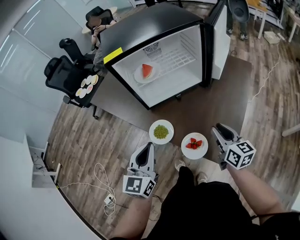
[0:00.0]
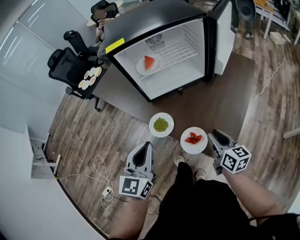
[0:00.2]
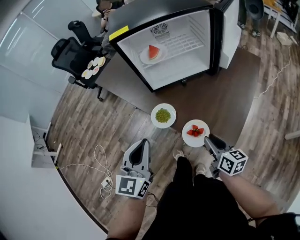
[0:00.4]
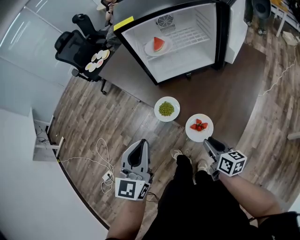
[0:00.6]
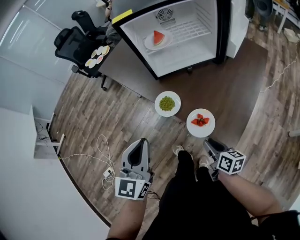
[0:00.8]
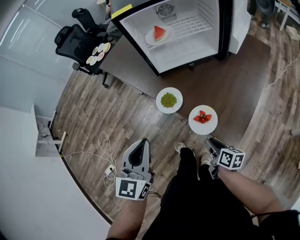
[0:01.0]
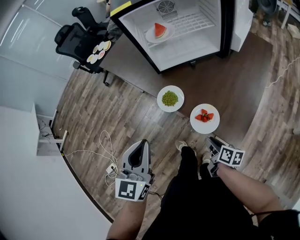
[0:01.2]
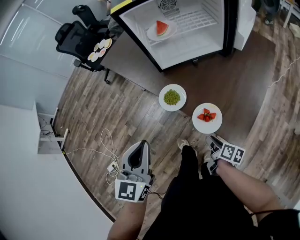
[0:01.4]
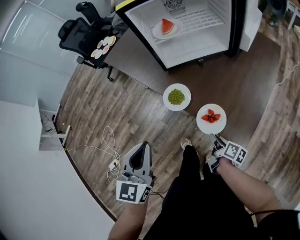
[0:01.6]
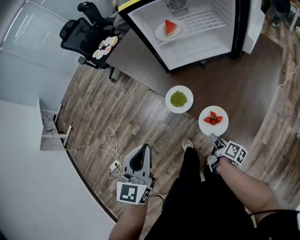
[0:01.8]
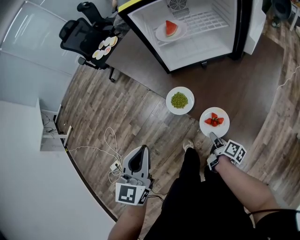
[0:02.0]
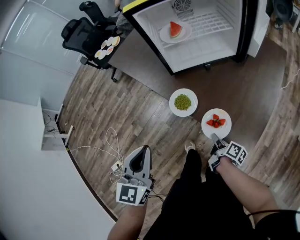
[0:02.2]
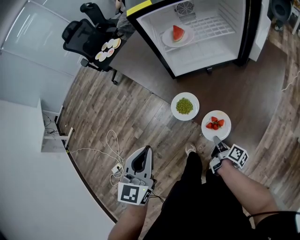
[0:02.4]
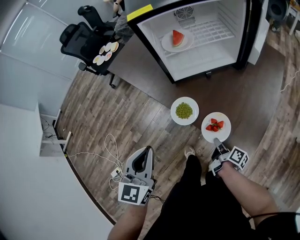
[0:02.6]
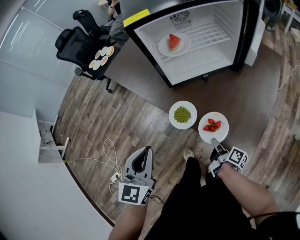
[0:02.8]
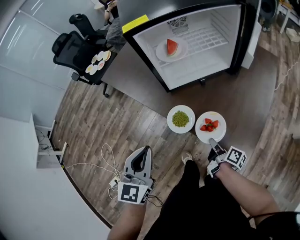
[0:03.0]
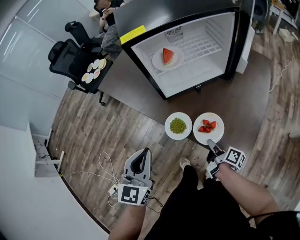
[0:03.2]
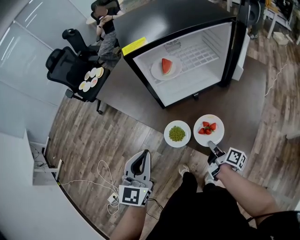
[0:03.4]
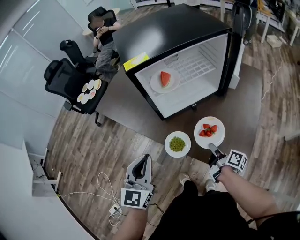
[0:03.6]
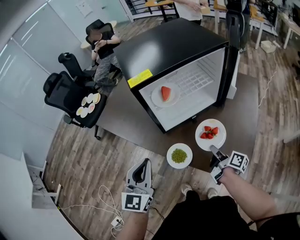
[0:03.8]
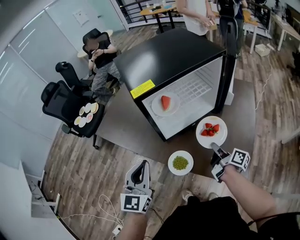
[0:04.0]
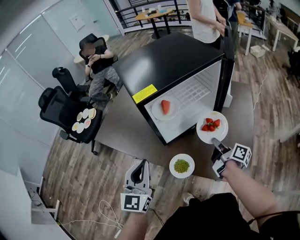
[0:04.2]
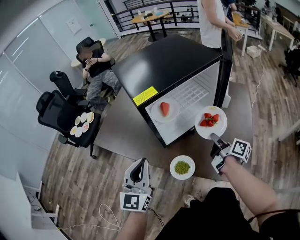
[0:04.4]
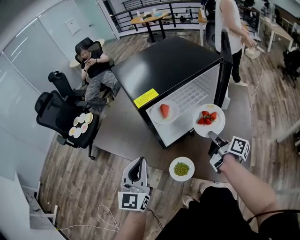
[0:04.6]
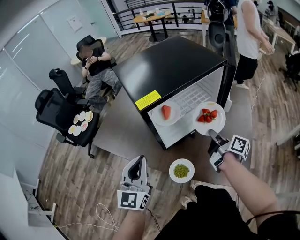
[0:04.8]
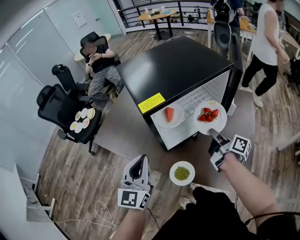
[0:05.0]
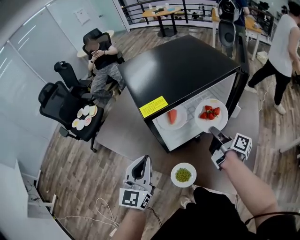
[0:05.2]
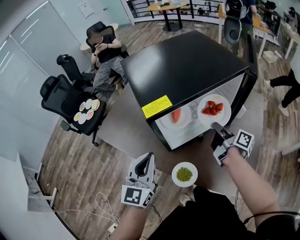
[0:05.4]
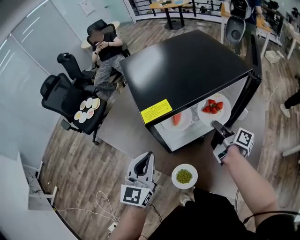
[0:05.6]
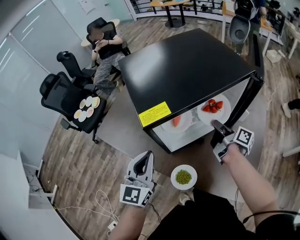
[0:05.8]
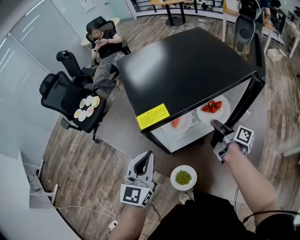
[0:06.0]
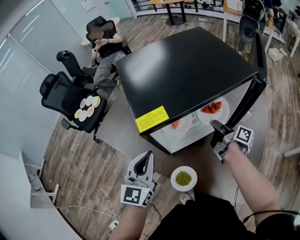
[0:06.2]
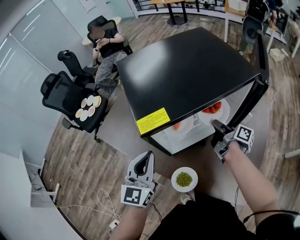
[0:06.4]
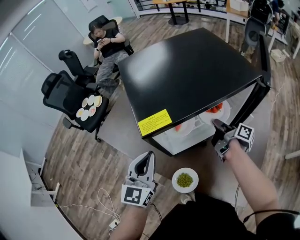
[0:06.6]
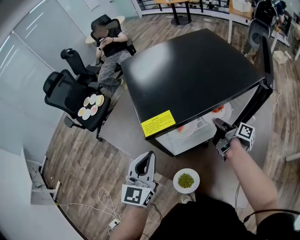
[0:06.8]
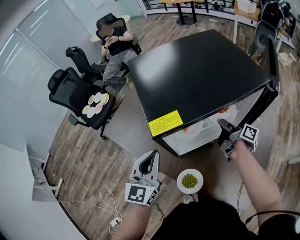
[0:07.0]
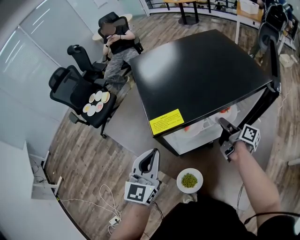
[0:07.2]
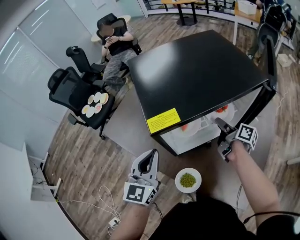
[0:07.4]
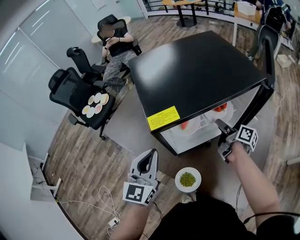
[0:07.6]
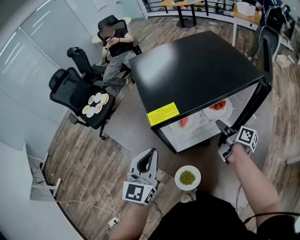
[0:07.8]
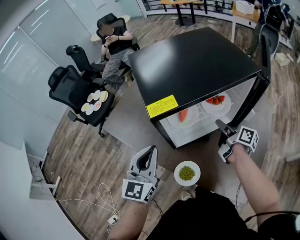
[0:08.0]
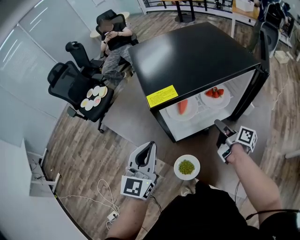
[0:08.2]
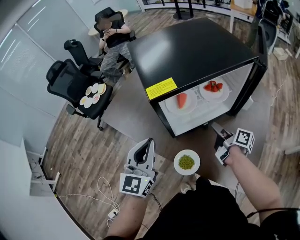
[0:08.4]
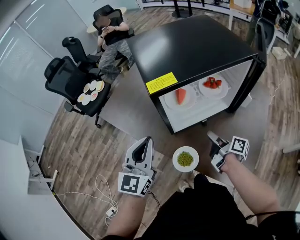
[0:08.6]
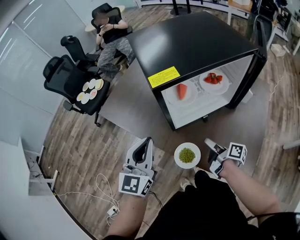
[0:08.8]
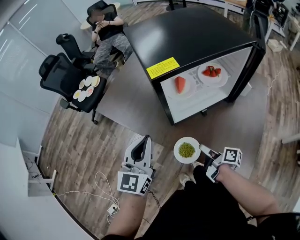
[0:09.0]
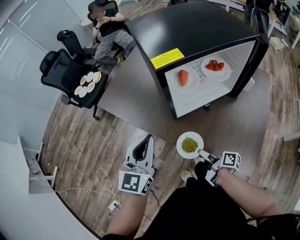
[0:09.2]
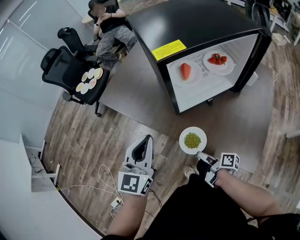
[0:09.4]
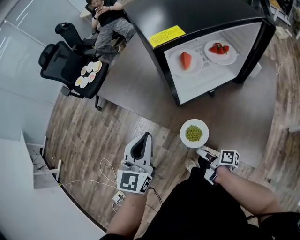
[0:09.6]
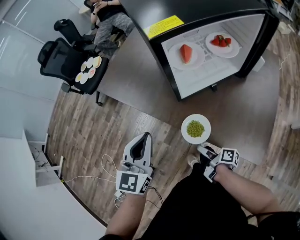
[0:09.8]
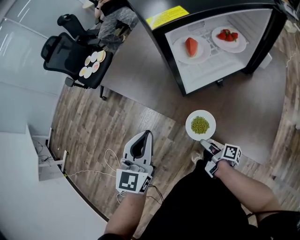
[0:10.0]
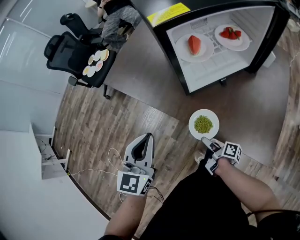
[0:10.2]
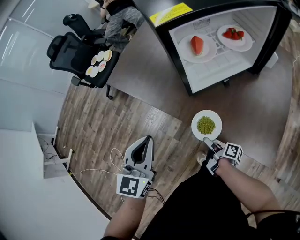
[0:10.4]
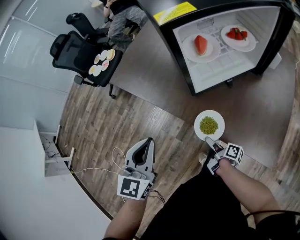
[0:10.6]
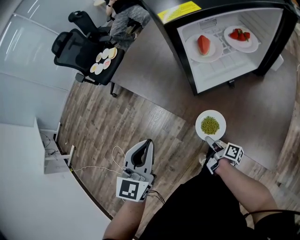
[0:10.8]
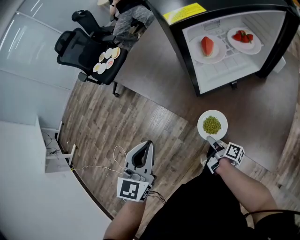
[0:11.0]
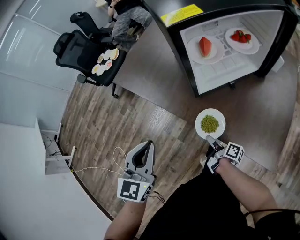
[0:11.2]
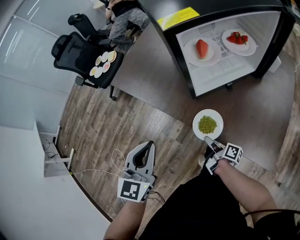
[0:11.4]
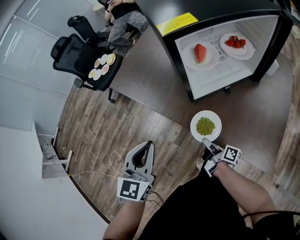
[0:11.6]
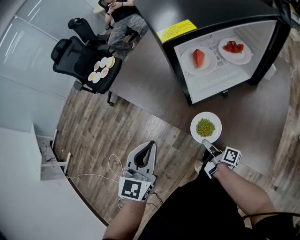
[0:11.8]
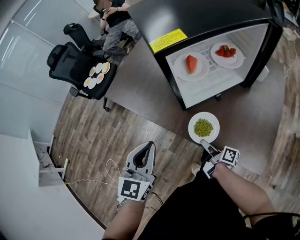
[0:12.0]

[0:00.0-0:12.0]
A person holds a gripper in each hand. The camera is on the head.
0:00.0 to 0:01.6: The right gripper travels downward, to the left and backward by about 25 cm, and rotates around the line of its fingers by about 50 degrees, clockwise from behind. The left gripper heads backward and to the left, covering about 15 cm.
0:01.6 to 0:03.0: The grippers both shift forward by some 10 cm.
0:03.0 to 0:04.4: The right gripper moves upward and forward, about 25 cm, and changes its angle by roughly 20 degrees. The left gripper shifts approximately 15 cm forward and upward, and turns by roughly 20 degrees.
0:04.4 to 0:06.0: The right gripper travels forward by about 15 cm; the left gripper moves forward, some 10 cm.
0:06.0 to 0:07.6: The right gripper opens.
0:07.6 to 0:09.0: The left gripper is displaced backward by roughly 10 cm. The right gripper travels backward, to the left and downward by some 30 cm.
0:09.0 to 0:10.4: The left gripper is displaced backward, downward and to the left by about 10 cm, while the right gripper moves downward, to the left and backward, roughly 15 cm.
0:10.4 to 0:12.0: The right gripper is displaced upward and forward by about 10 cm, and closes its fingers.

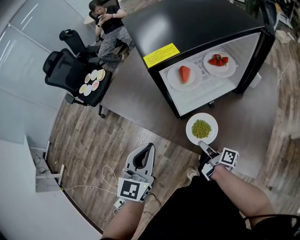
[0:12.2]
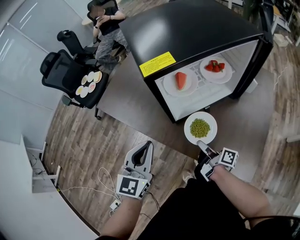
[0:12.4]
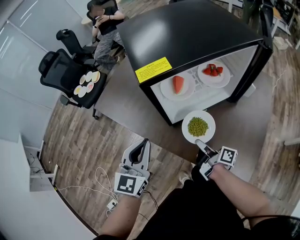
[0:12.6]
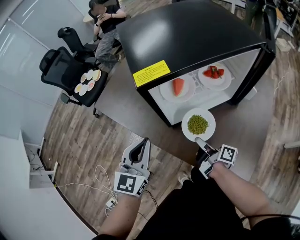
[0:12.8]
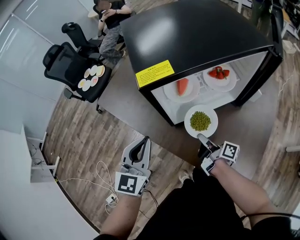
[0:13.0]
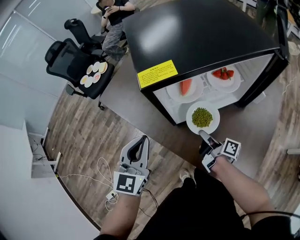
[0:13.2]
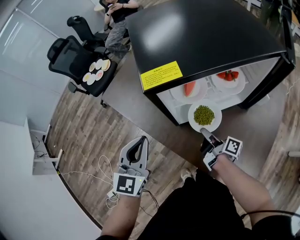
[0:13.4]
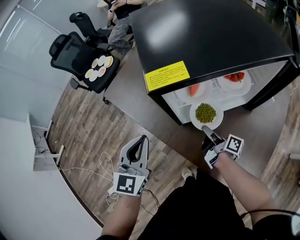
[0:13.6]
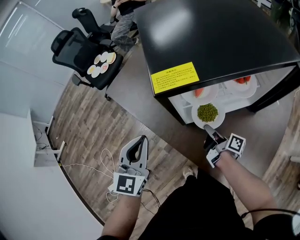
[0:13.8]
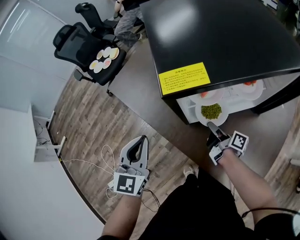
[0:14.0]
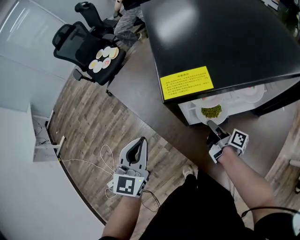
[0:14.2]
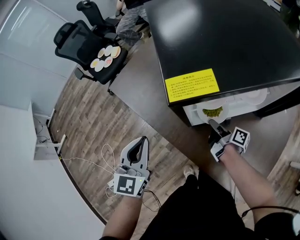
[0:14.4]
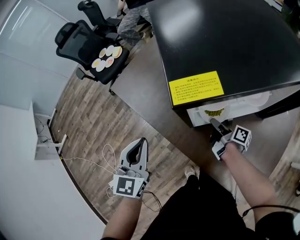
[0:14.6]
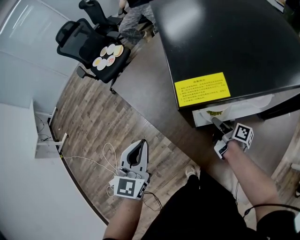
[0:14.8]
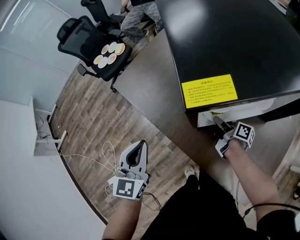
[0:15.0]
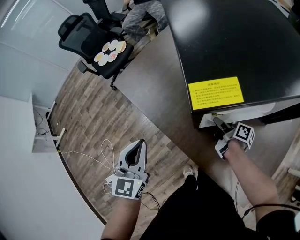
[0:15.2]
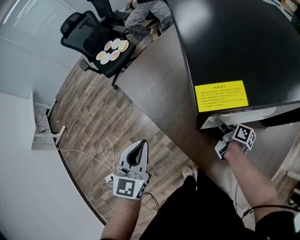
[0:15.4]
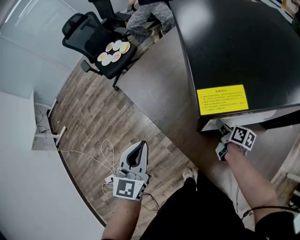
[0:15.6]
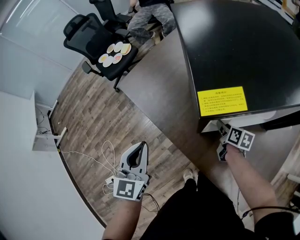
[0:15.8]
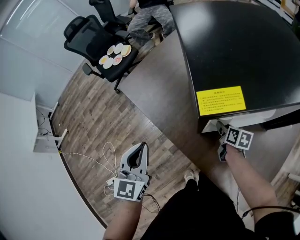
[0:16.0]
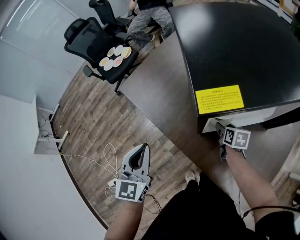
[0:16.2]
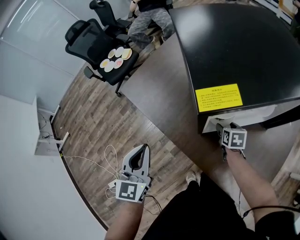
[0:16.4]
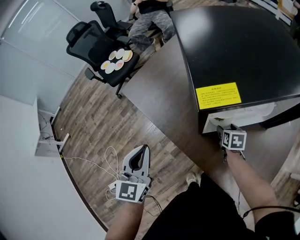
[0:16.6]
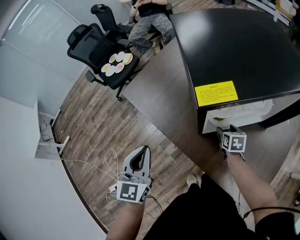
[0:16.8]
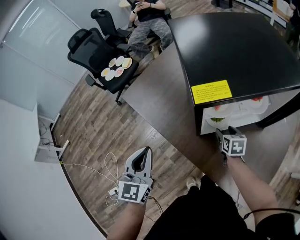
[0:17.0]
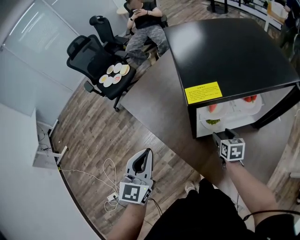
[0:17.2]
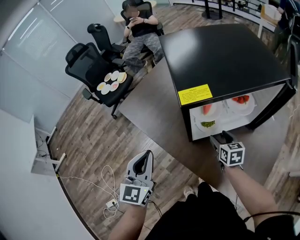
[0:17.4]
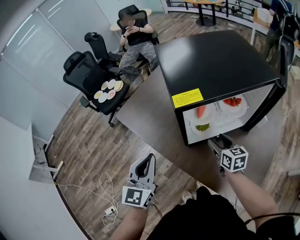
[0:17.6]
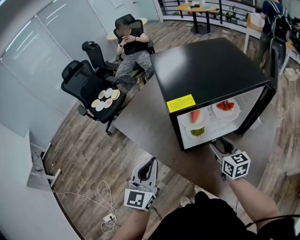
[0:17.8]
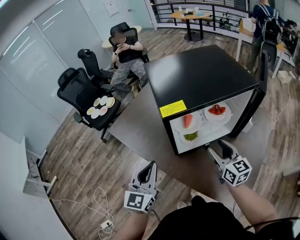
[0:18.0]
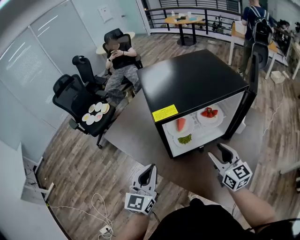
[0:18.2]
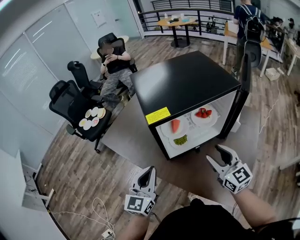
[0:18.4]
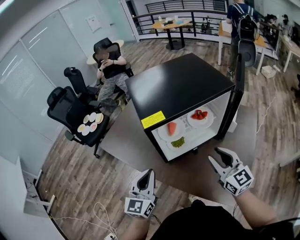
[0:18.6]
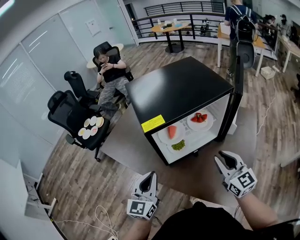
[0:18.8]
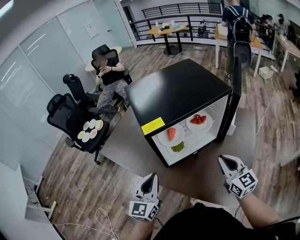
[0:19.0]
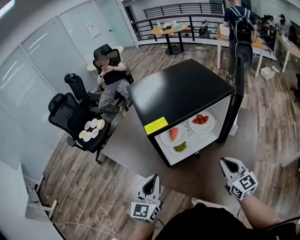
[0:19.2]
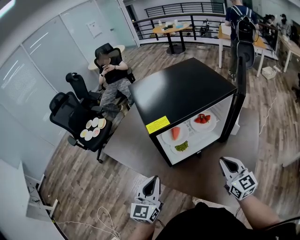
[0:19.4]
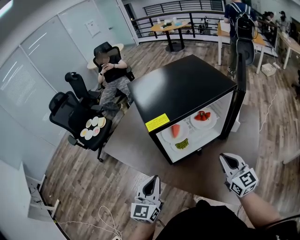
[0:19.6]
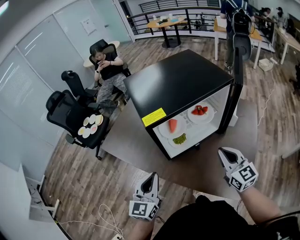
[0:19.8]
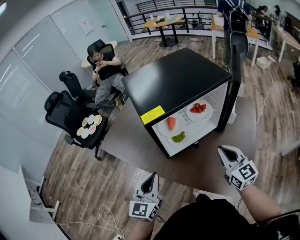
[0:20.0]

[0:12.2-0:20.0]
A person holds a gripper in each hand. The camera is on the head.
0:12.2 to 0:13.8: The right gripper goes roughly 15 cm forward. The left gripper goes approximately 10 cm forward.
0:13.8 to 0:15.4: The left gripper moves to the left, approximately 5 cm. Meanwhile the right gripper goes about 10 cm forward, and rotates roughly 20 degrees.
0:15.4 to 0:16.8: The right gripper twists roughly 50 degrees counterclockwise, seen from behind, and opens its fingers.
0:16.8 to 0:18.4: The left gripper moves to the right, approximately 10 cm, and swivels about 20 degrees. The right gripper travels upward and backward by approximately 30 cm, and tilts its fingers roughly 50 degrees upward.
0:18.4 to 0:20.0: The right gripper closes.

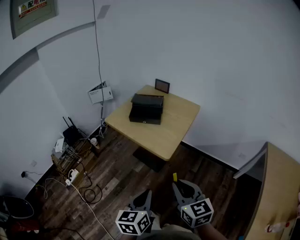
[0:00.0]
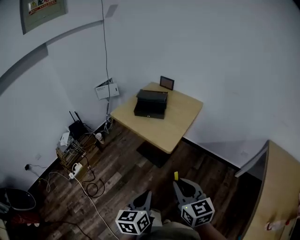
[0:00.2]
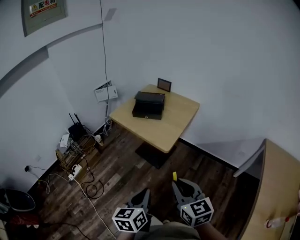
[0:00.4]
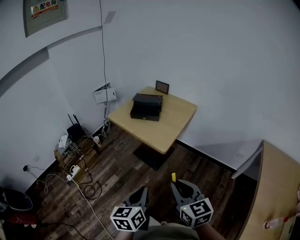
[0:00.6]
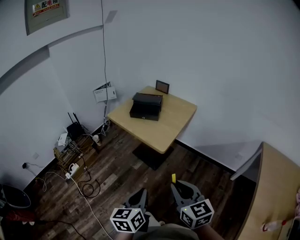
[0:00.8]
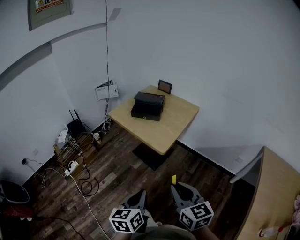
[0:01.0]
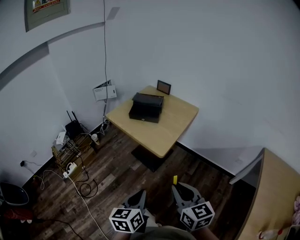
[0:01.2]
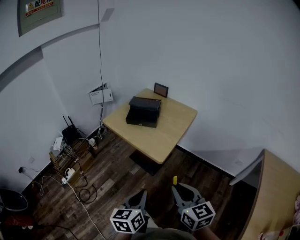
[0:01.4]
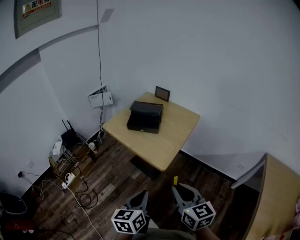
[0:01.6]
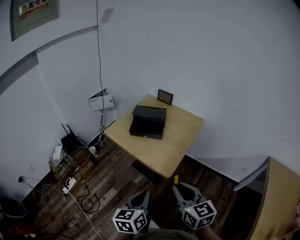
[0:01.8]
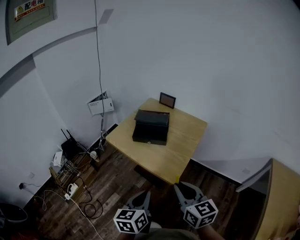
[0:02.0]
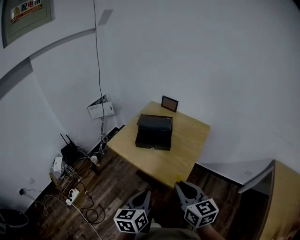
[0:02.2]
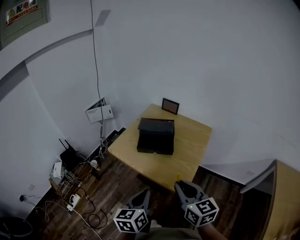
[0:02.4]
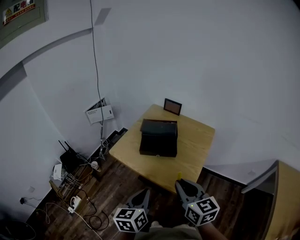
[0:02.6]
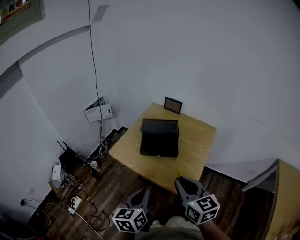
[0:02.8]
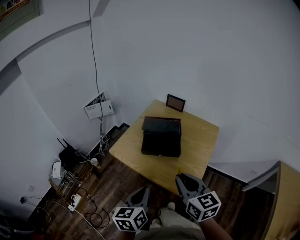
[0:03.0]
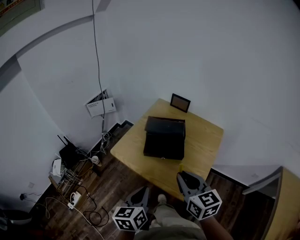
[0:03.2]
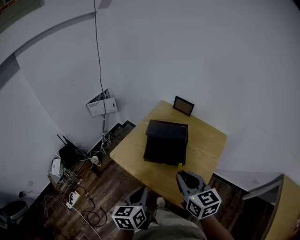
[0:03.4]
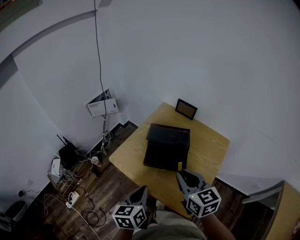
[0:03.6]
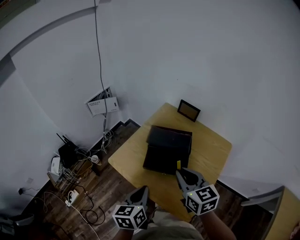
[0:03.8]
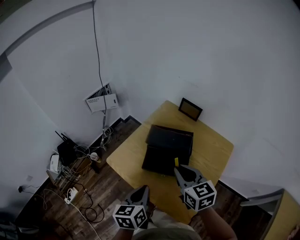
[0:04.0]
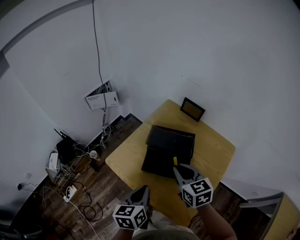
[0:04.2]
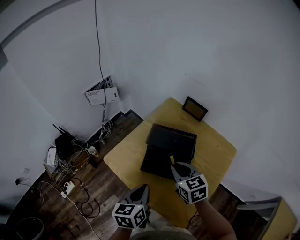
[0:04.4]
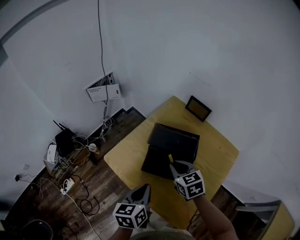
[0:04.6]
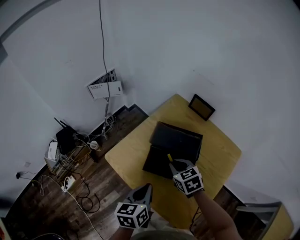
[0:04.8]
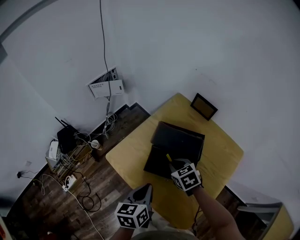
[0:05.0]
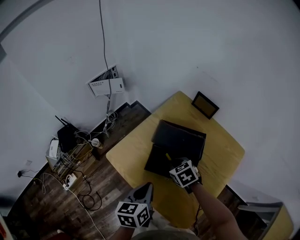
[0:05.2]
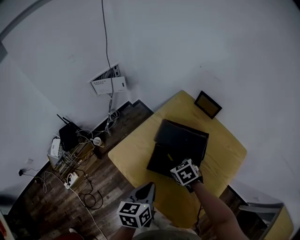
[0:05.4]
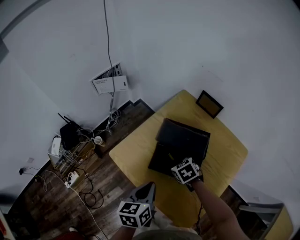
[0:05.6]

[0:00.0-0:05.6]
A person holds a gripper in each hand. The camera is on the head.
0:00.0 to 0:01.4: The left gripper goes backward and returns, roughly 10 cm each way, while the right gripper travels backward and back again, some 10 cm each way.
0:01.4 to 0:02.8: The grippers both shift forward and to the left by roughly 30 cm.
0:02.8 to 0:04.2: The two grippers go about 20 cm forward.
0:04.2 to 0:05.6: The right gripper is displaced downward by roughly 20 cm, and tips its fingers downward by approximately 30 degrees.
